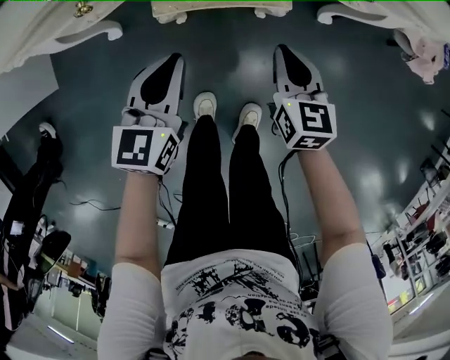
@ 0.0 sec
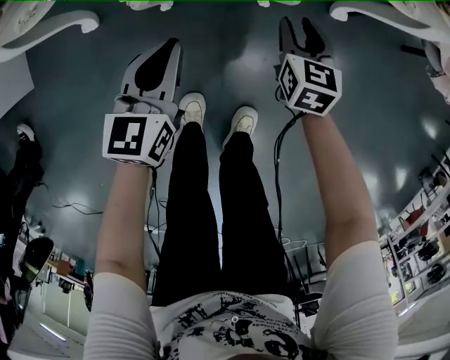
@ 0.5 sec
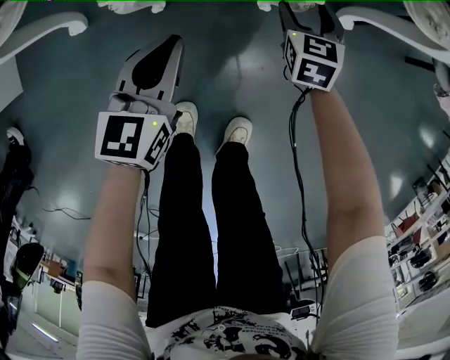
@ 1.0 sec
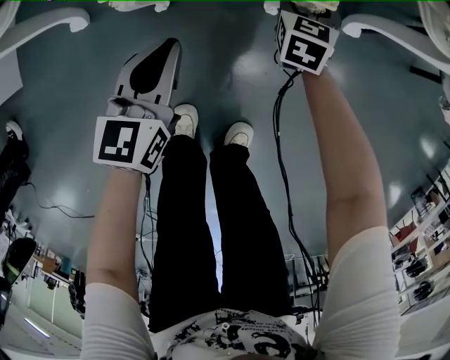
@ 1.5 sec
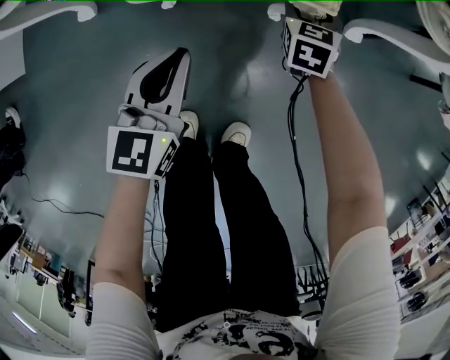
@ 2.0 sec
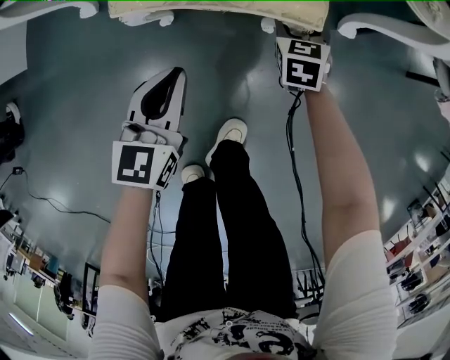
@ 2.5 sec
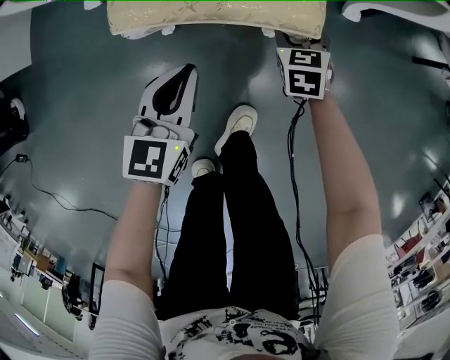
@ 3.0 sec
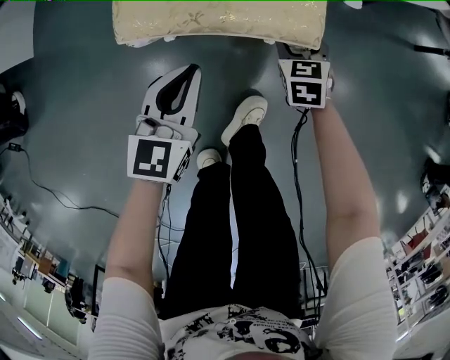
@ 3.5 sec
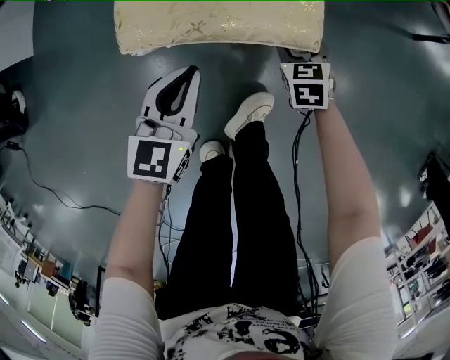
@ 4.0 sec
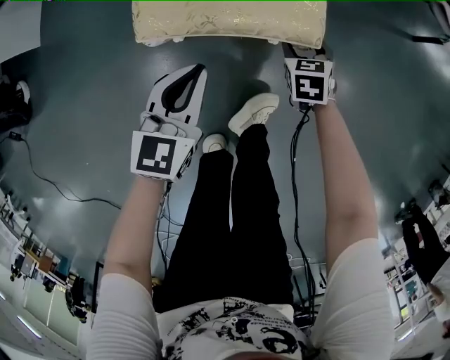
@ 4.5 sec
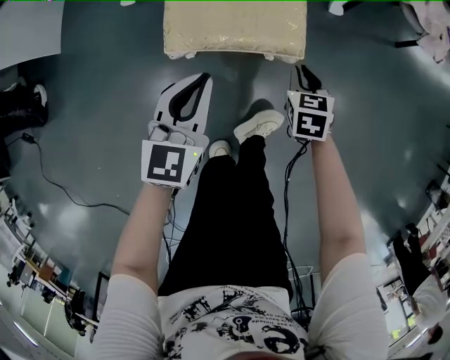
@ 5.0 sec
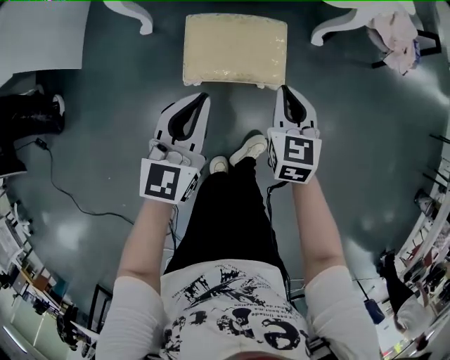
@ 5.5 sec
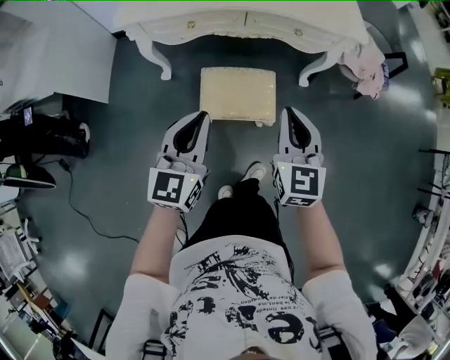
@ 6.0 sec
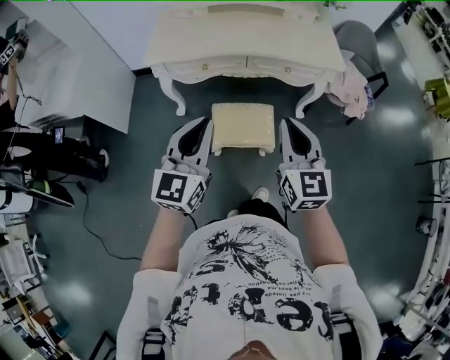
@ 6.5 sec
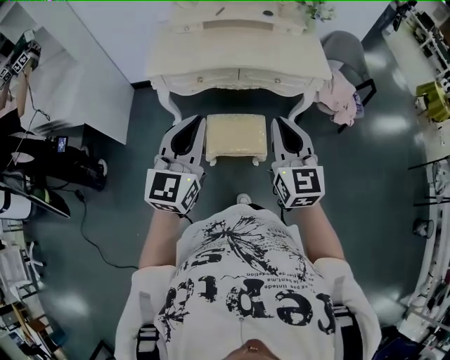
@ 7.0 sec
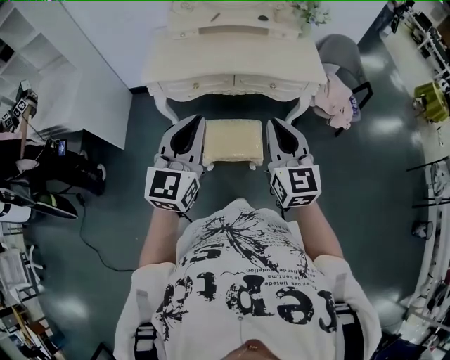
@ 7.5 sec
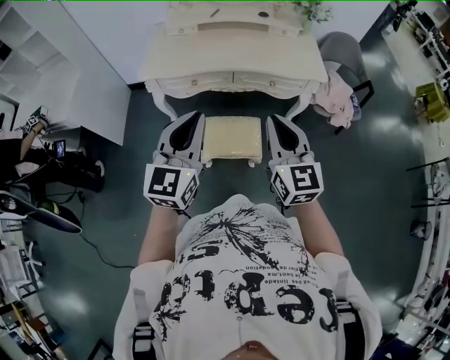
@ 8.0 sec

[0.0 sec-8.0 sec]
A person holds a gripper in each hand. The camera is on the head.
0.0 sec to 2.0 sec: The left gripper heads downward, covering some 20 cm. The right gripper travels downward and forward by roughly 30 cm, swivels about 20 degrees, and opens its fingers.
2.0 sec to 4.0 sec: The grippers both shift backward by about 25 cm.
4.0 sec to 6.0 sec: The two grippers go roughly 60 cm upward. The right gripper angles its fingers upward, by roughly 30 degrees, and closes.
6.0 sec to 8.0 sec: Both grippers travel together upward, about 20 cm.

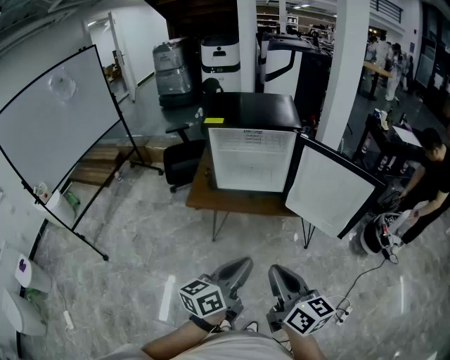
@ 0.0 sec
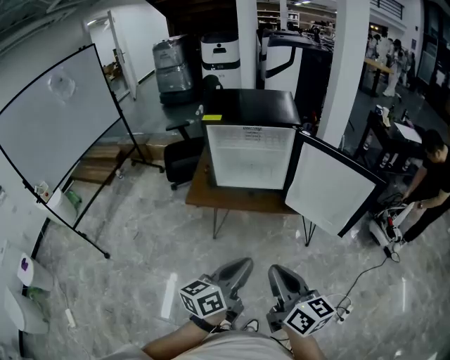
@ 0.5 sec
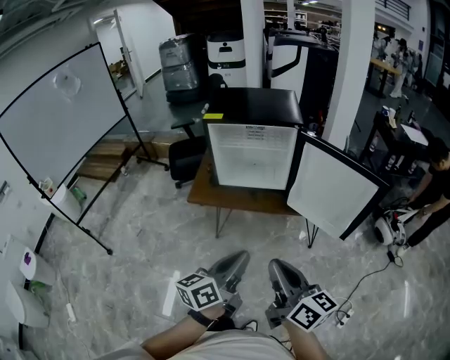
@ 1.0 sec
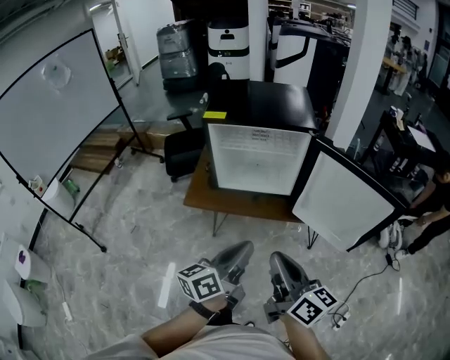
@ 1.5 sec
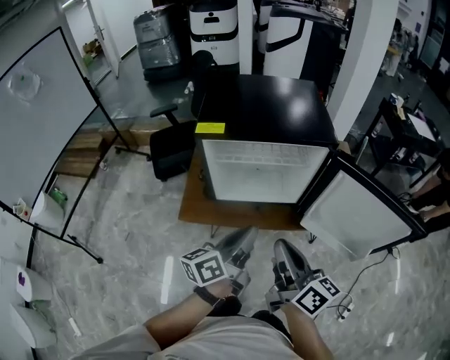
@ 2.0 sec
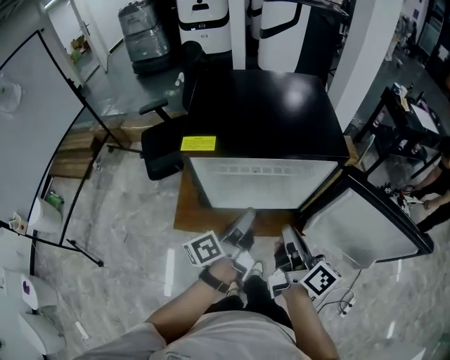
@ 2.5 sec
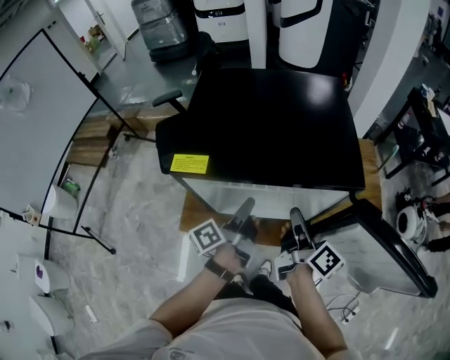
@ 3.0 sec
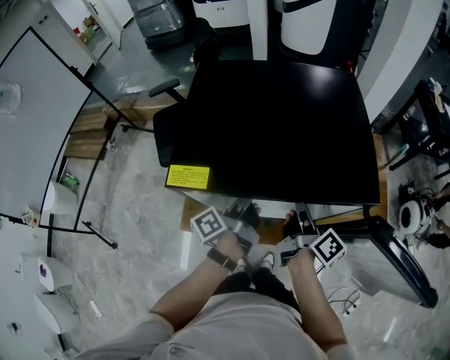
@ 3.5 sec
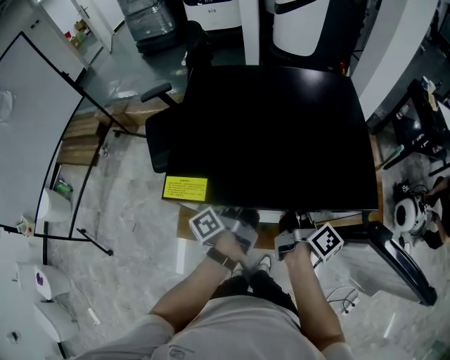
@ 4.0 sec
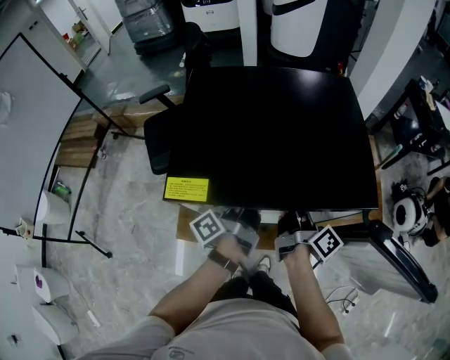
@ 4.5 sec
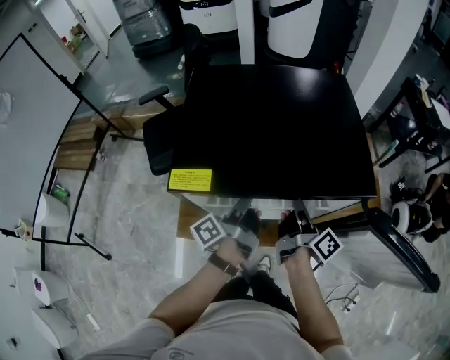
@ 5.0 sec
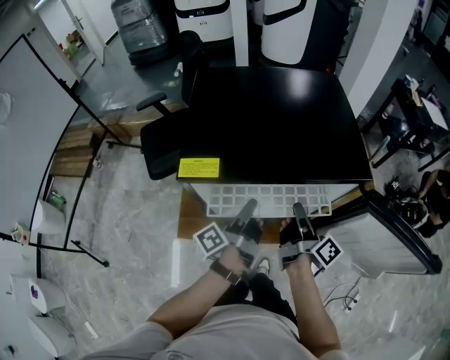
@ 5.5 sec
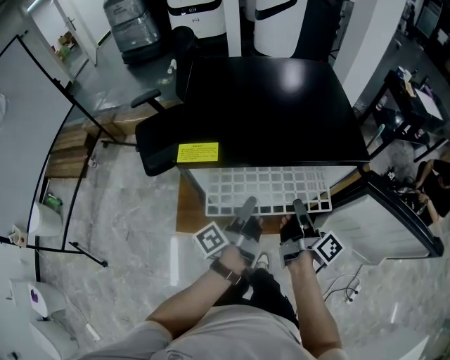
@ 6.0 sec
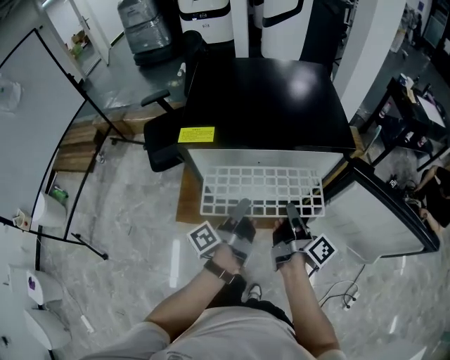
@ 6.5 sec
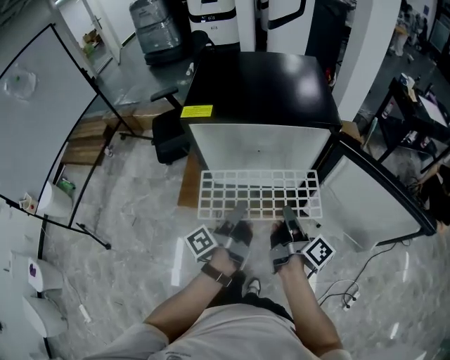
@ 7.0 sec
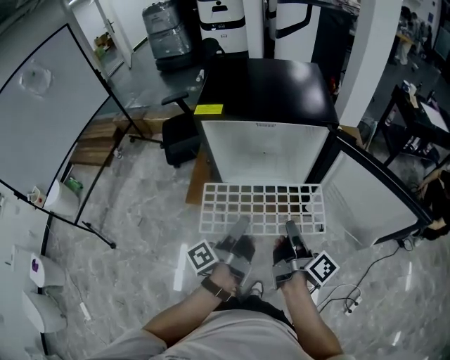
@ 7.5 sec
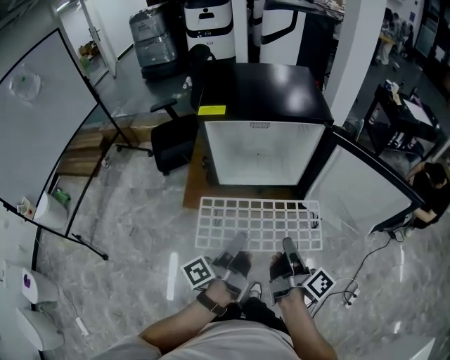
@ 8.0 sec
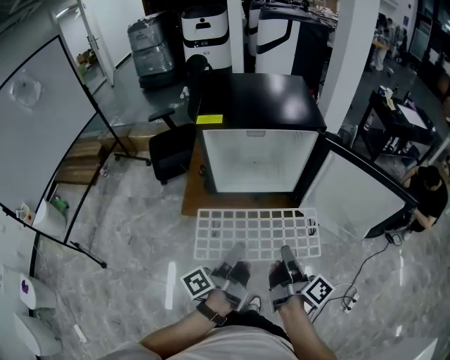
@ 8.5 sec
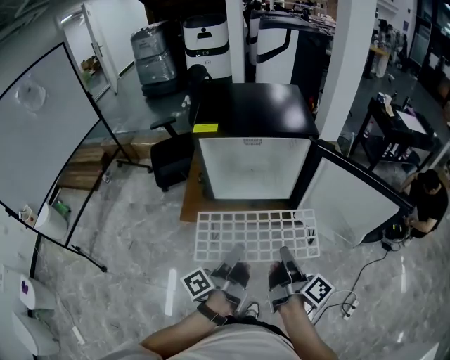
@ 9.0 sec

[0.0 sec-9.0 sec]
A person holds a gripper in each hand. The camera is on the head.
0.0 sec to 2.0 sec: The right gripper shifts by about 30 cm.
2.0 sec to 4.5 sec: The right gripper shifts by approximately 35 cm, and changes its angle by some 40 degrees.
4.5 sec to 7.0 sec: The right gripper changes place by about 25 cm.
7.0 sec to 9.0 sec: The right gripper shifts by roughly 15 cm.

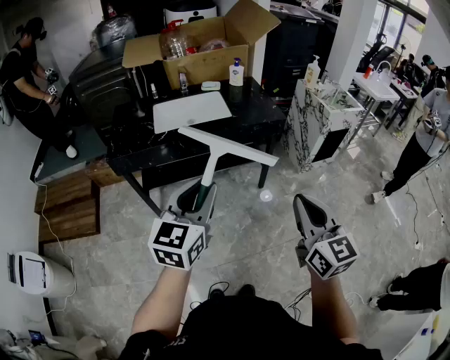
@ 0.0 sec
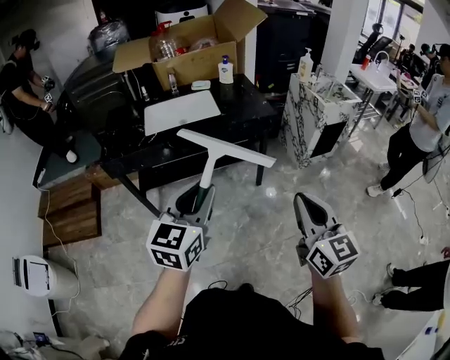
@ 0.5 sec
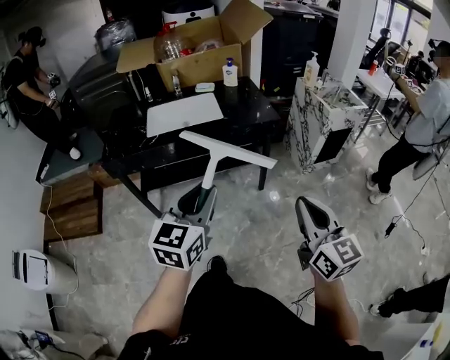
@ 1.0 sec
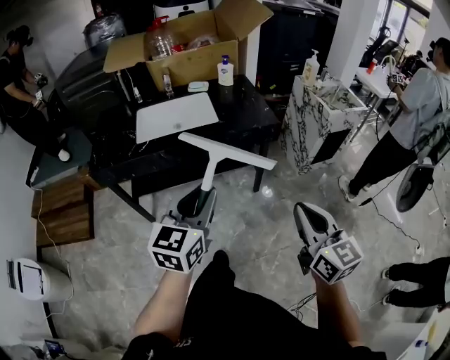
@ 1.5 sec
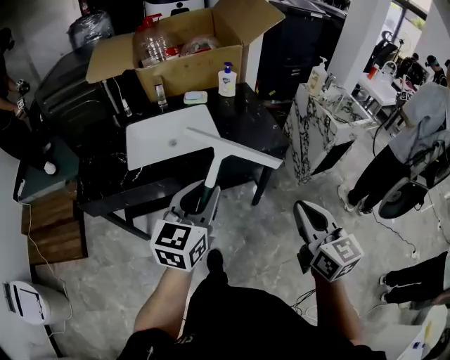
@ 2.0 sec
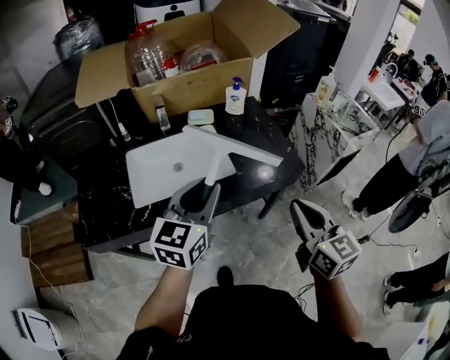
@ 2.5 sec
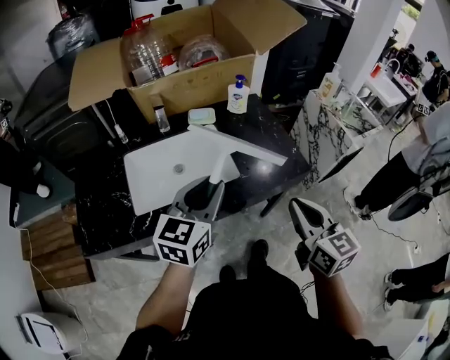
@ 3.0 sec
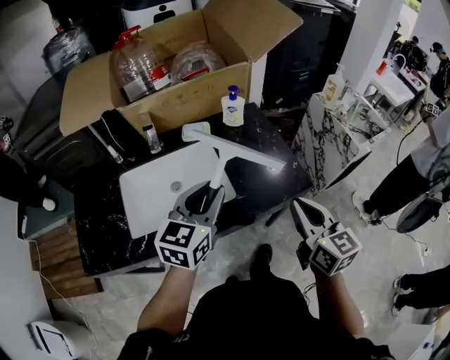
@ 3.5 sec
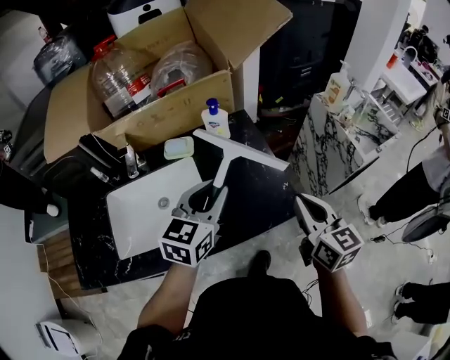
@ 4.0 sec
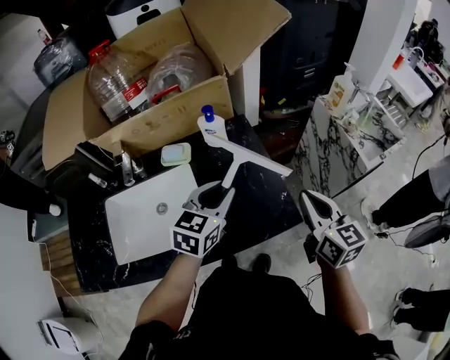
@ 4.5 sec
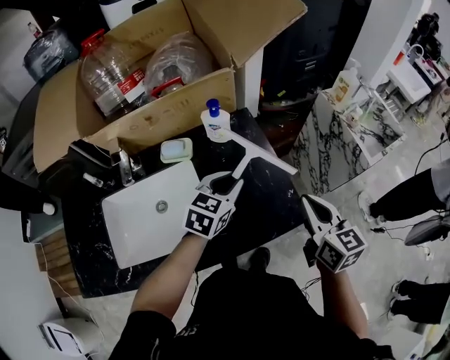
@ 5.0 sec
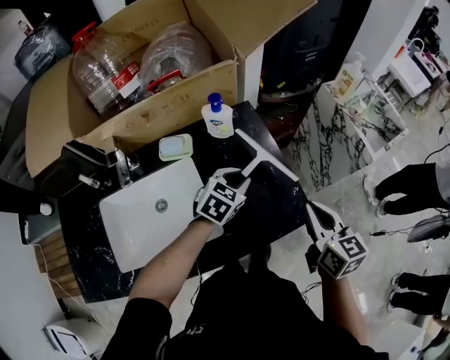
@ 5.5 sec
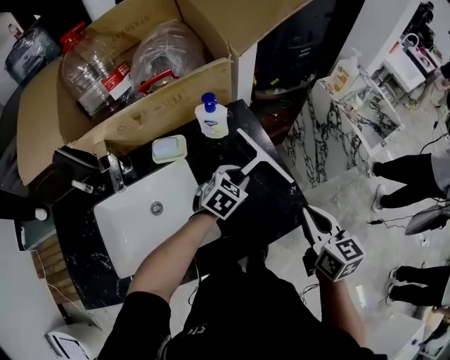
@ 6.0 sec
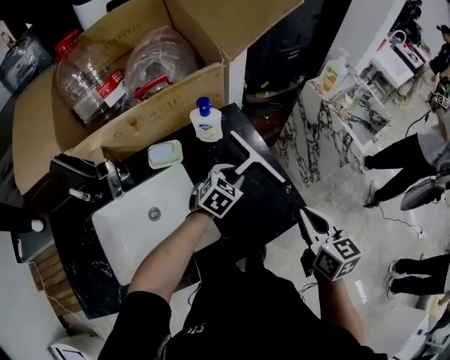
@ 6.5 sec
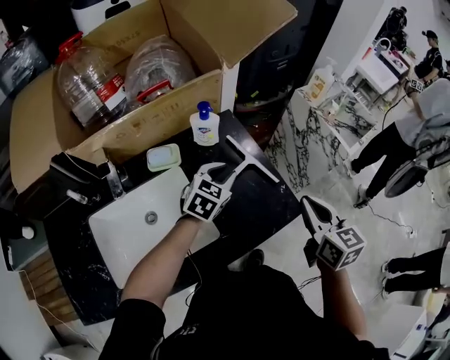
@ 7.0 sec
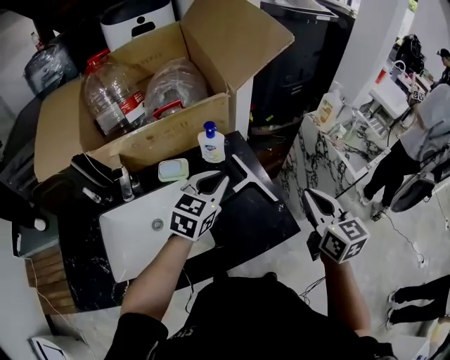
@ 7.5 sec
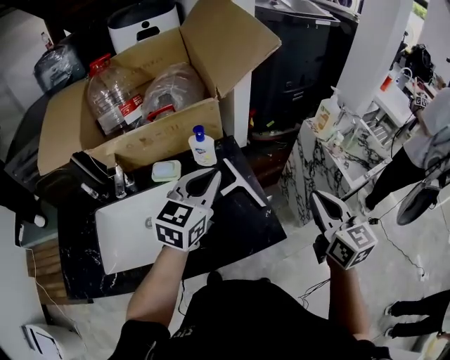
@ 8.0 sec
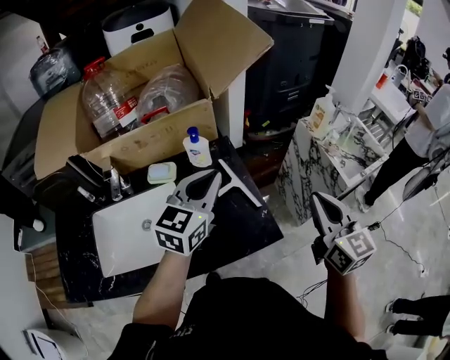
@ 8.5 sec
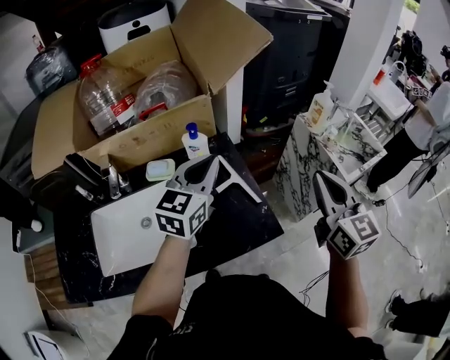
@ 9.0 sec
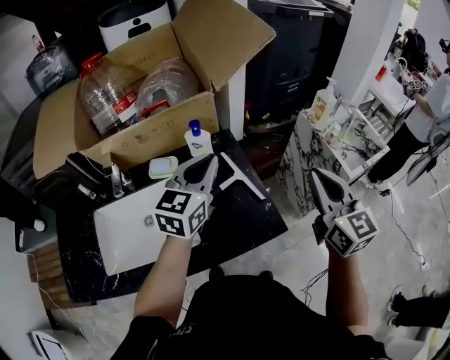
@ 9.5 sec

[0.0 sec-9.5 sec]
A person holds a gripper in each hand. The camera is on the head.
0.0 sec to 2.0 sec: The grippers both shift forward by approximately 25 cm.
2.0 sec to 4.0 sec: Both grippers travel together forward, roughly 35 cm.
4.0 sec to 5.5 sec: The right gripper heads downward, covering about 5 cm, while the left gripper is displaced downward and forward by about 20 cm, and turns by approximately 30 degrees.
5.5 sec to 7.5 sec: The right gripper heads upward, covering about 10 cm; the left gripper is displaced upward by roughly 15 cm, and swivels roughly 20 degrees.
7.5 sec to 9.5 sec: Both grippers travel together upward, approximately 5 cm.
